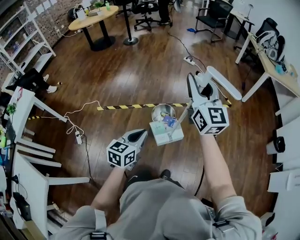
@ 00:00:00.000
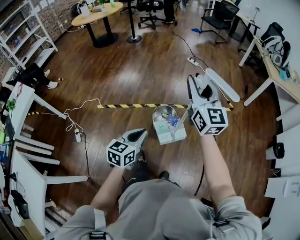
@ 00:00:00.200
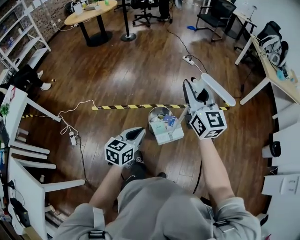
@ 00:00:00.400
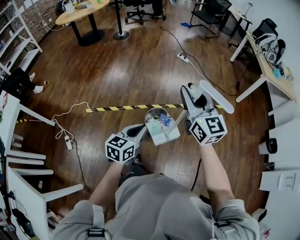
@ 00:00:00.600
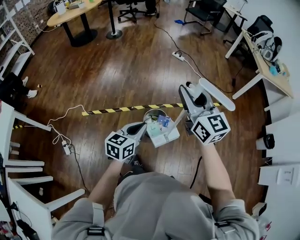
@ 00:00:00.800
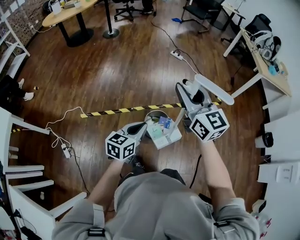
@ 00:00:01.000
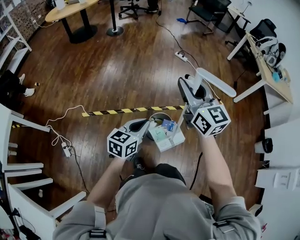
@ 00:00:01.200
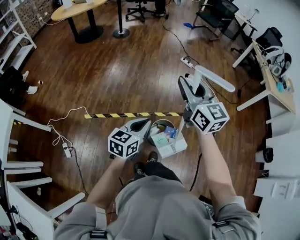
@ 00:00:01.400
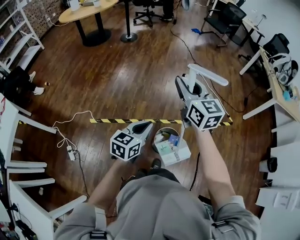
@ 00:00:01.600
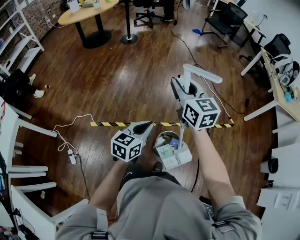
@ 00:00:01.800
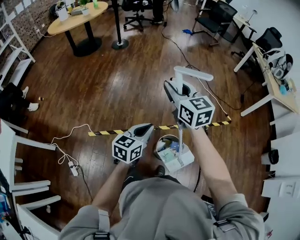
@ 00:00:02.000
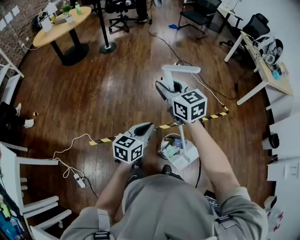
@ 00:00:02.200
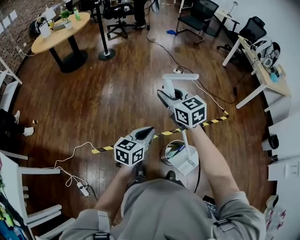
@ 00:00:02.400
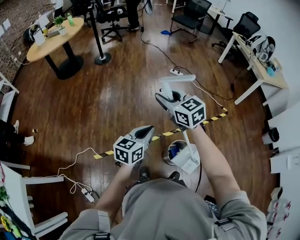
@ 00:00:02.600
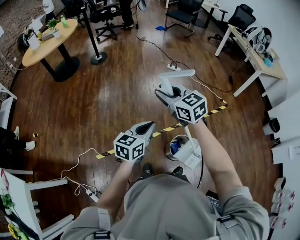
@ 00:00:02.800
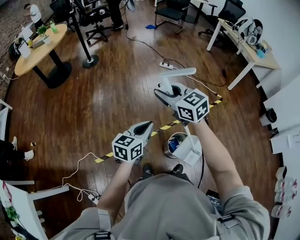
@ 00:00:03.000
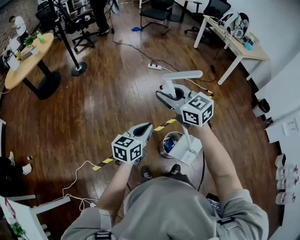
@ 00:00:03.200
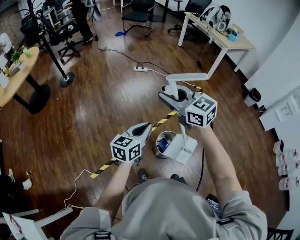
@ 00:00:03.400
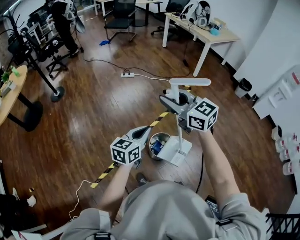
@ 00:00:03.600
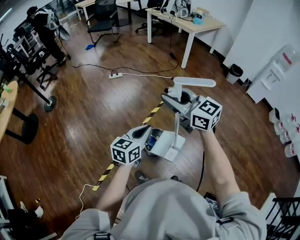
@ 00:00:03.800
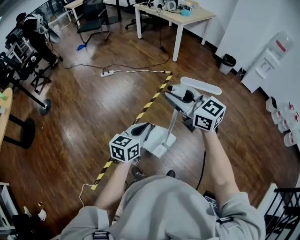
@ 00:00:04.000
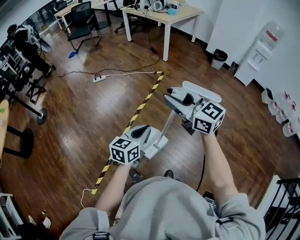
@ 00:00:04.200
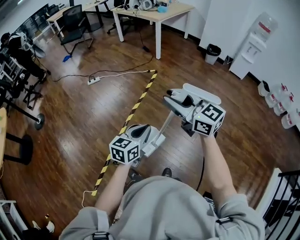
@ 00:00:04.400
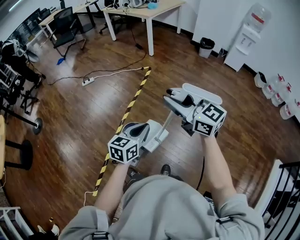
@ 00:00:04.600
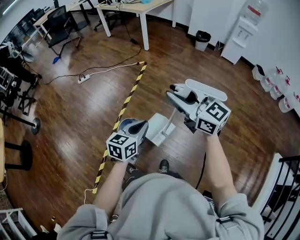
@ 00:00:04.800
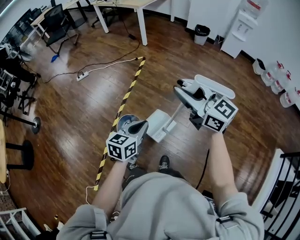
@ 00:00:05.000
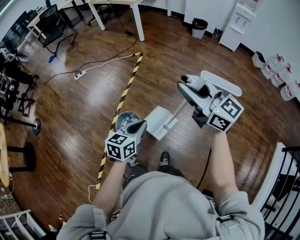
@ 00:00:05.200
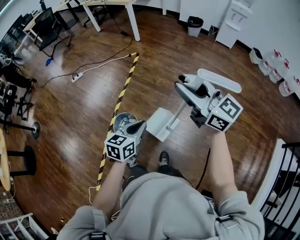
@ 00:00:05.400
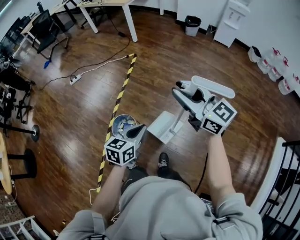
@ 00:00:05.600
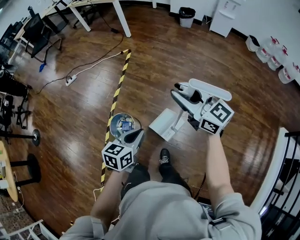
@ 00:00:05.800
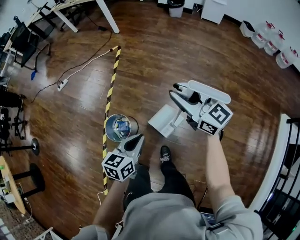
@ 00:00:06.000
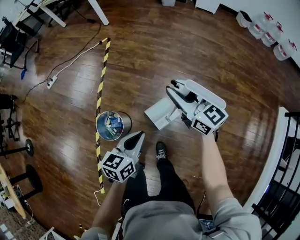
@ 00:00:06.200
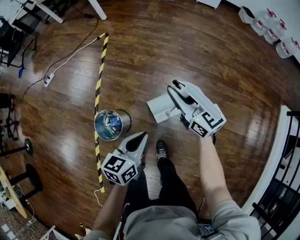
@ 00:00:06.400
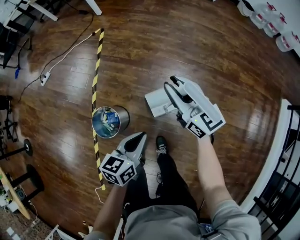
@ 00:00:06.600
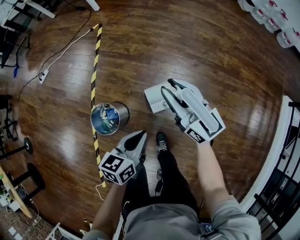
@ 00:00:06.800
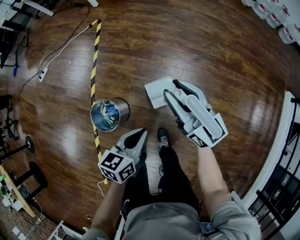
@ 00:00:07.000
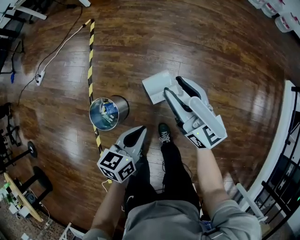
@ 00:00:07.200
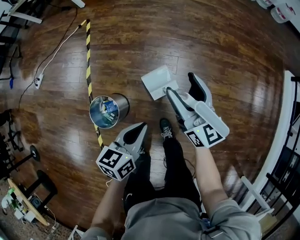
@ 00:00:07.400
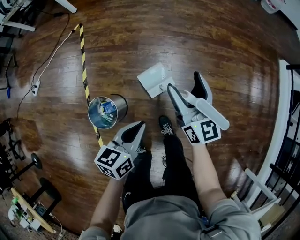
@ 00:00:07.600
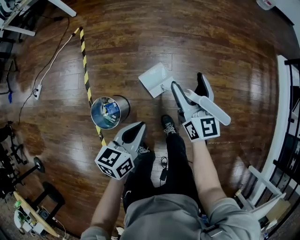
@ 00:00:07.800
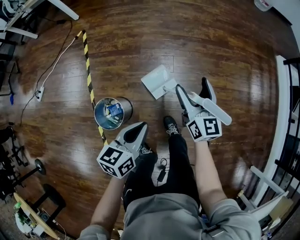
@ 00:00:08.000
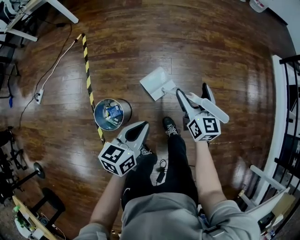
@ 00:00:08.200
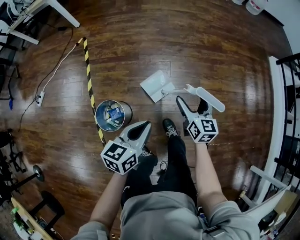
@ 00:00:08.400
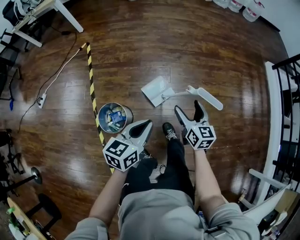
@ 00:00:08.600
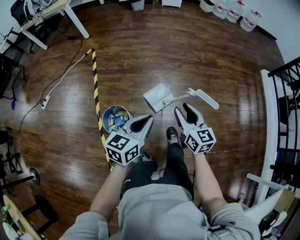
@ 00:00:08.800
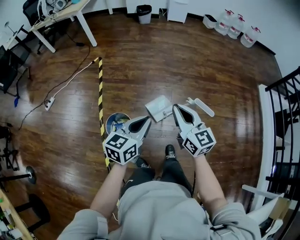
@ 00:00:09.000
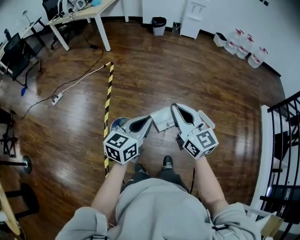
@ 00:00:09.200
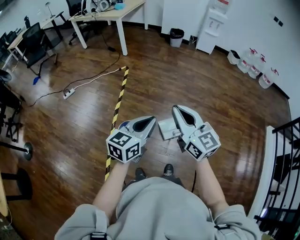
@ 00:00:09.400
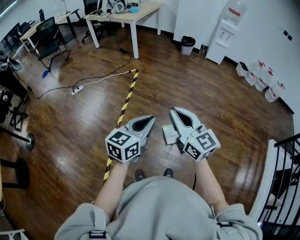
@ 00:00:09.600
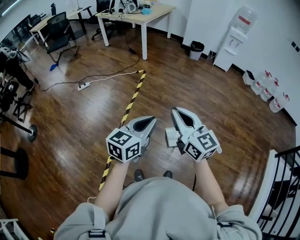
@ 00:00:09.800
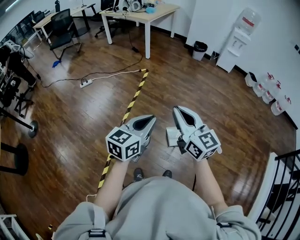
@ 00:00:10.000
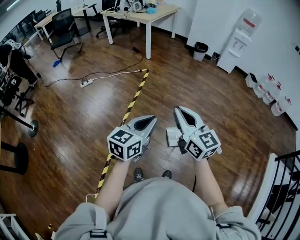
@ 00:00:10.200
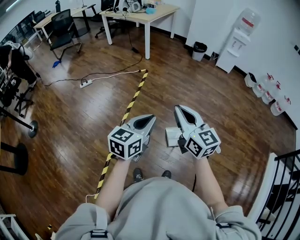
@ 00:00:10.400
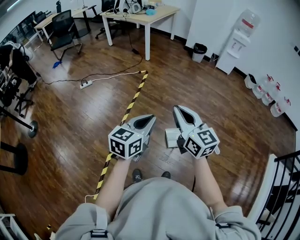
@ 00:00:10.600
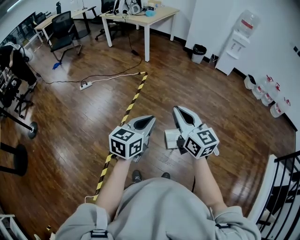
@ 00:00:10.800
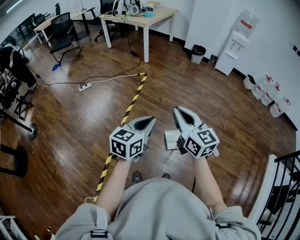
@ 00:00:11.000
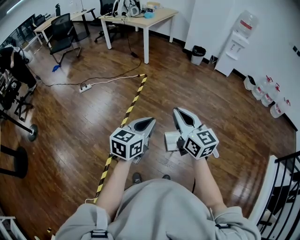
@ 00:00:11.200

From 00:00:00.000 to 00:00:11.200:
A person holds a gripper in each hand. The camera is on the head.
From 00:00:00.000 to 00:00:01.600: The left gripper heads forward, covering approximately 30 cm. The right gripper travels forward and to the left by about 35 cm, and turns by roughly 20 degrees.
From 00:00:01.600 to 00:00:03.200: The left gripper heads forward and to the left, covering roughly 15 cm, and turns by some 30 degrees. Meanwhile the right gripper goes approximately 15 cm to the left and forward.
From 00:00:03.200 to 00:00:04.800: The two grippers travel together, some 50 cm. The right gripper changes its angle by about 40 degrees. The left gripper rotates approximately 40 degrees.
From 00:00:04.800 to 00:00:06.400: The grippers both shift downward and to the right by approximately 30 cm. The right gripper rotates approximately 30 degrees.
From 00:00:06.400 to 00:00:08.000: The right gripper moves about 15 cm, swivels some 40 degrees, and opens up, while the left gripper changes place by approximately 10 cm.
From 00:00:08.000 to 00:00:09.600: Both grippers move upward, approximately 30 cm. The left gripper turns by about 30 degrees. The right gripper turns by about 50 degrees, and closes up.
From 00:00:09.600 to 00:00:11.200: The grippers stay close to where they were, moving slightly.

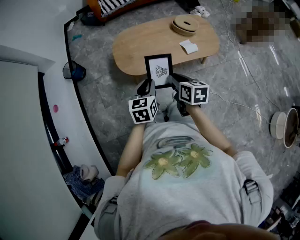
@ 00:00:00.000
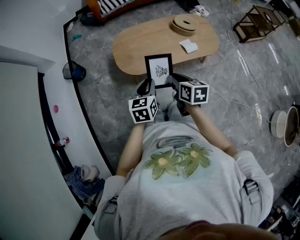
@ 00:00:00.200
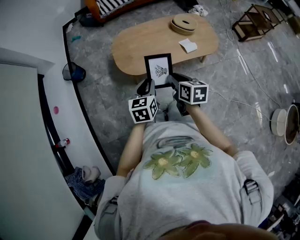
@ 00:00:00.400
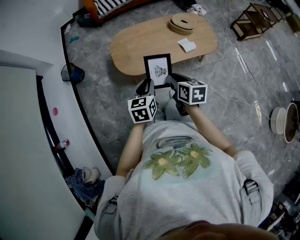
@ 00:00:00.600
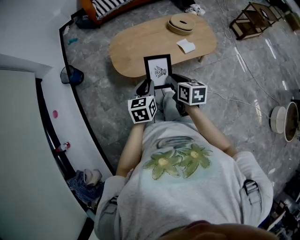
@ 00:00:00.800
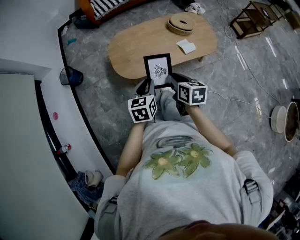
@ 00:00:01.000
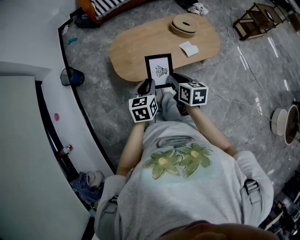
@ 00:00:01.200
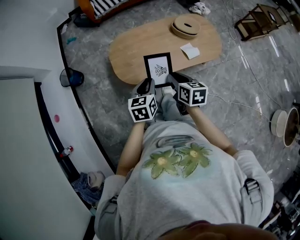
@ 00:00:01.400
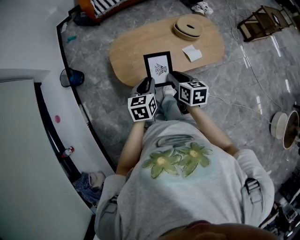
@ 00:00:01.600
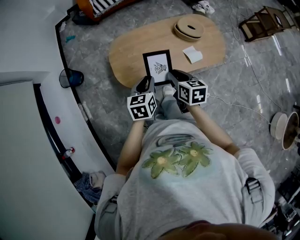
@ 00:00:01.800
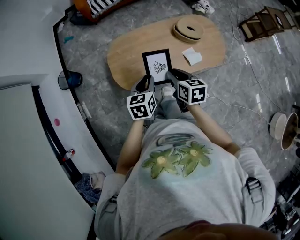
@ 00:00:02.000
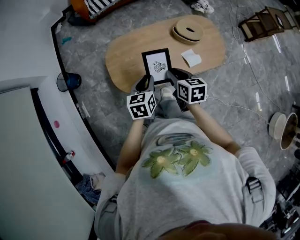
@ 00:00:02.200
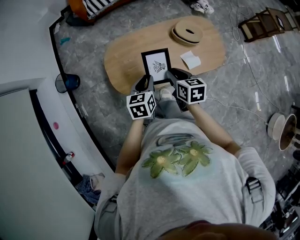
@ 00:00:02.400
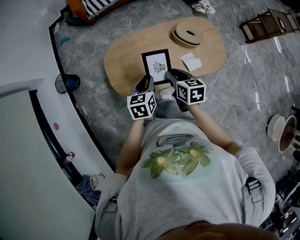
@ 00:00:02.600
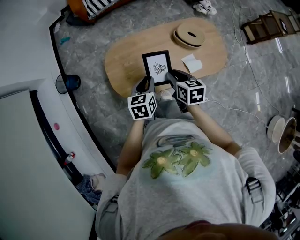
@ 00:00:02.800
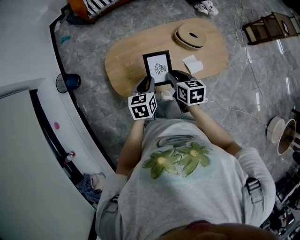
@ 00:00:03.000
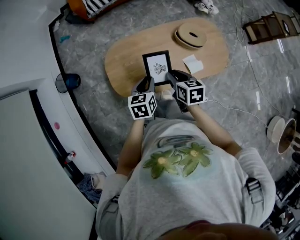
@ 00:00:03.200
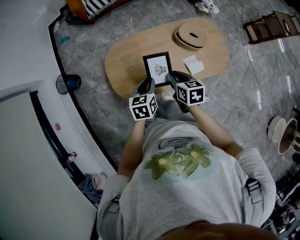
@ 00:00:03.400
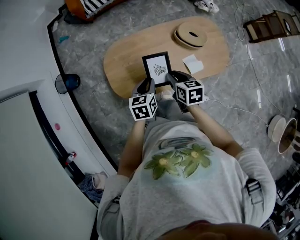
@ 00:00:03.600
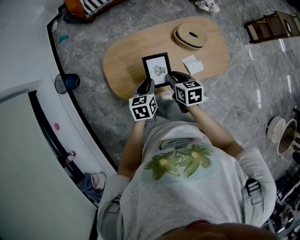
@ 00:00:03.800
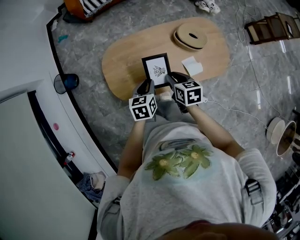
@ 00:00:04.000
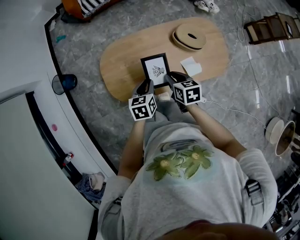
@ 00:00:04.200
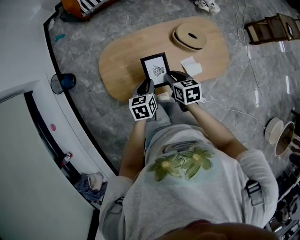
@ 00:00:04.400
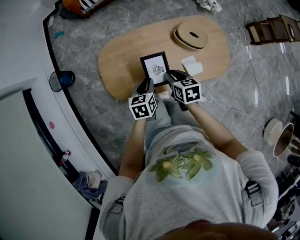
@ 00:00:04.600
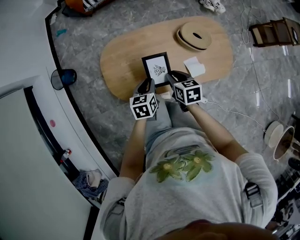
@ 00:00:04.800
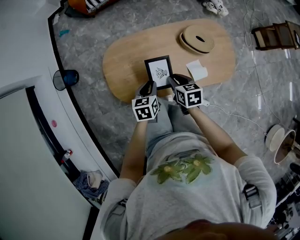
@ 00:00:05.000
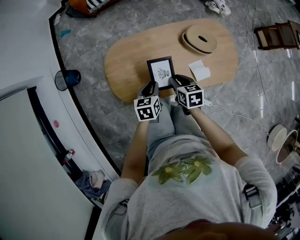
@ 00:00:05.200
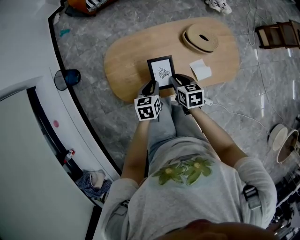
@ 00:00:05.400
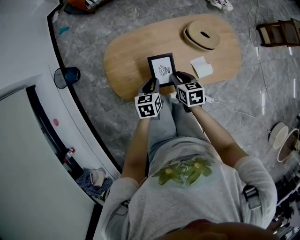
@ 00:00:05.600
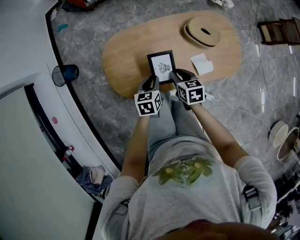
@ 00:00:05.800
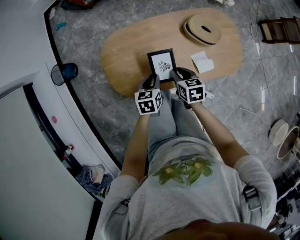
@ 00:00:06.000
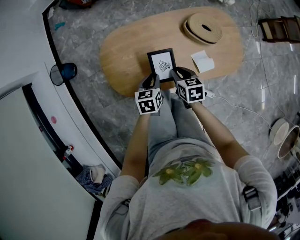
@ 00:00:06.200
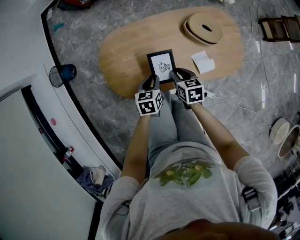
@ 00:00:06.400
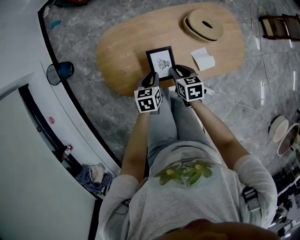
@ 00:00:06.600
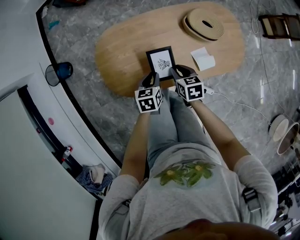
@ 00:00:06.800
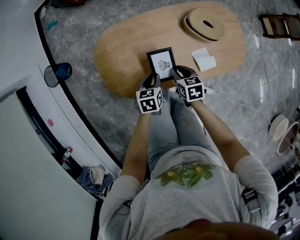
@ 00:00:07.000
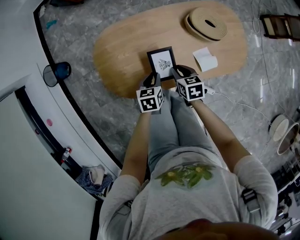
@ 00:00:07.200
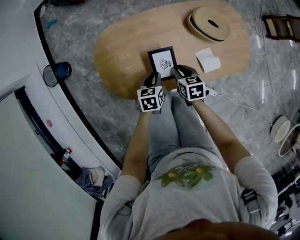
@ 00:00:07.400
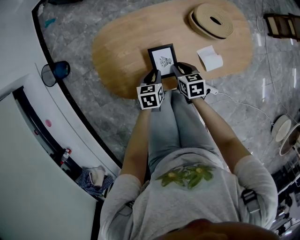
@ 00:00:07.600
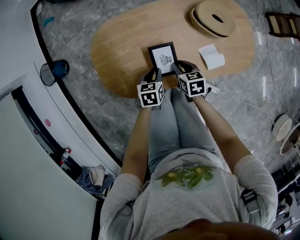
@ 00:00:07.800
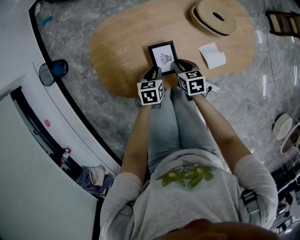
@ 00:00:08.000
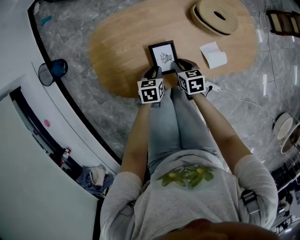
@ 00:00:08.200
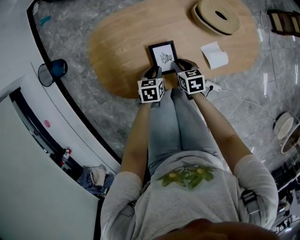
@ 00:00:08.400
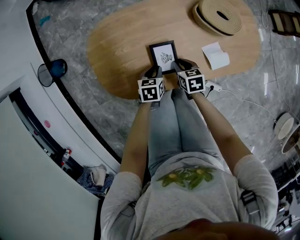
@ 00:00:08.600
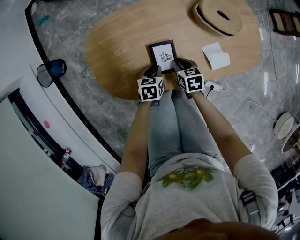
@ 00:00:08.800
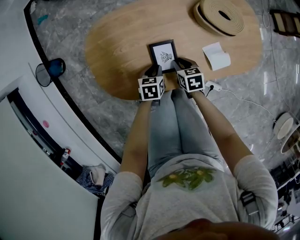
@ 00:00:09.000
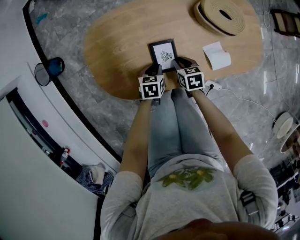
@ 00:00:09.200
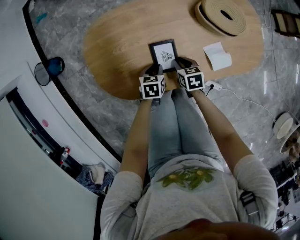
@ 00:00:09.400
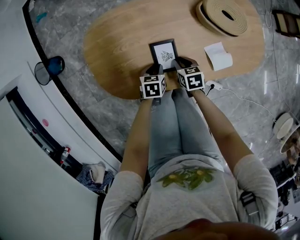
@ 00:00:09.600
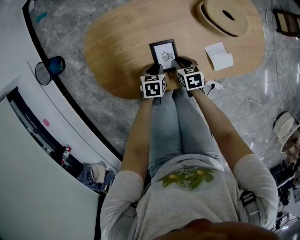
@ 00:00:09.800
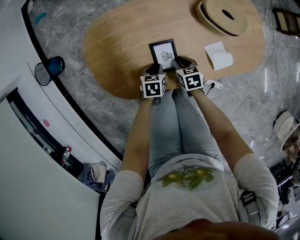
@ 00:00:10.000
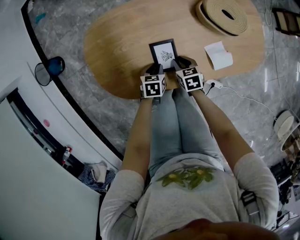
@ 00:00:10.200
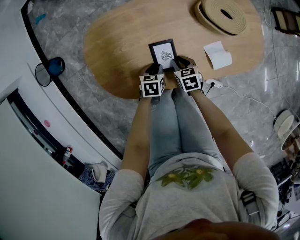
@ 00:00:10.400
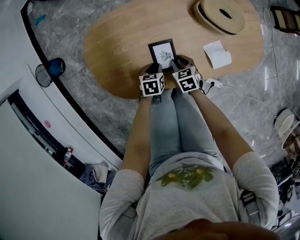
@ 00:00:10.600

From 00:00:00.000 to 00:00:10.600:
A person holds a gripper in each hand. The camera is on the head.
From 00:00:00.000 to 00:00:01.600: Both grippers move forward, approximately 15 cm.
From 00:00:01.600 to 00:00:03.000: Both grippers move forward, about 15 cm.
From 00:00:03.000 to 00:00:04.600: The two grippers go about 10 cm downward.
From 00:00:04.600 to 00:00:06.000: Both grippers move downward, some 5 cm.
From 00:00:06.000 to 00:00:07.600: Both grippers move downward, about 10 cm.
From 00:00:07.600 to 00:00:09.000: The grippers both shift downward by some 10 cm.
From 00:00:09.000 to 00:00:10.600: The grippers make only small movements.

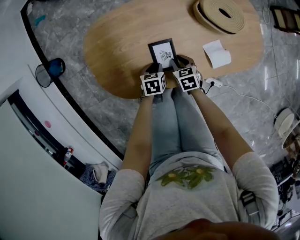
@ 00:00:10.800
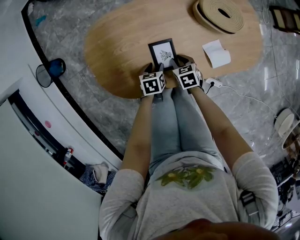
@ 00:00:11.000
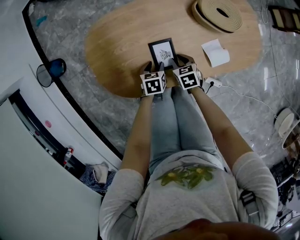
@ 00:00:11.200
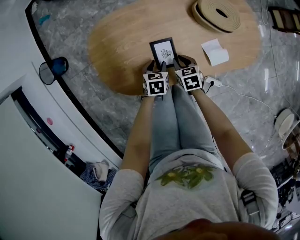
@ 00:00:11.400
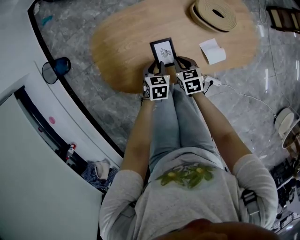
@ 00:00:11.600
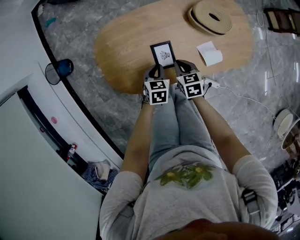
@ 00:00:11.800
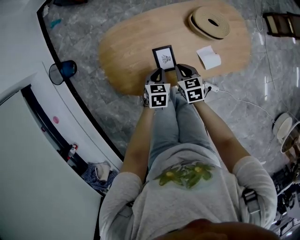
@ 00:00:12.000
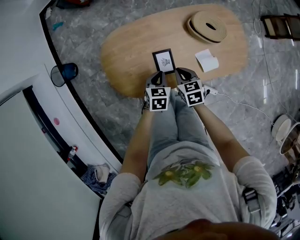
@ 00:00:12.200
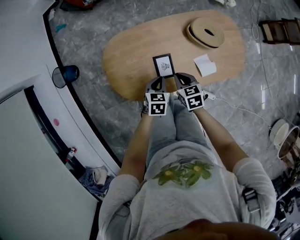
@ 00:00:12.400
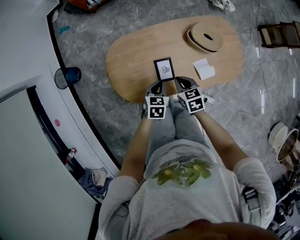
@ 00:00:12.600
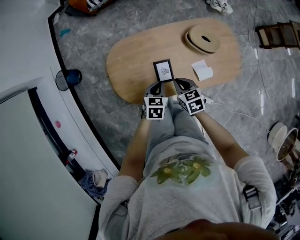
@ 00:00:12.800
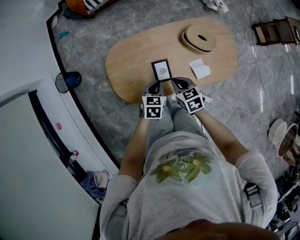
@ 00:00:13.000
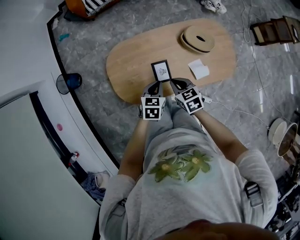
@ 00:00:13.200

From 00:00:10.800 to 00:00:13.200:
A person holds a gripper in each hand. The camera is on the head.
From 00:00:10.800 to 00:00:12.000: Both grippers move upward, approximately 15 cm. The left gripper closes, while the right gripper closes up.
From 00:00:12.000 to 00:00:13.200: The grippers both shift upward by roughly 10 cm.
